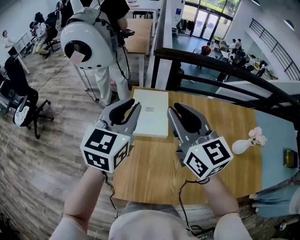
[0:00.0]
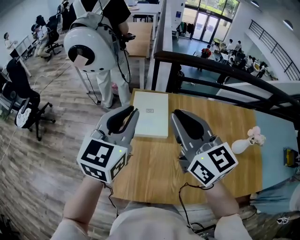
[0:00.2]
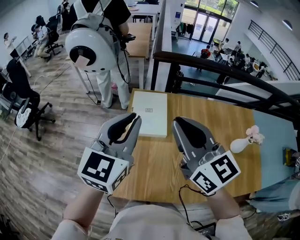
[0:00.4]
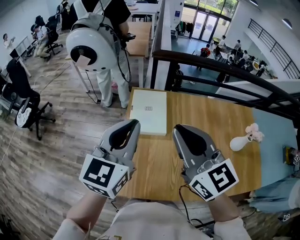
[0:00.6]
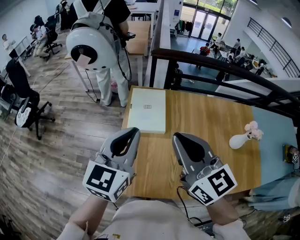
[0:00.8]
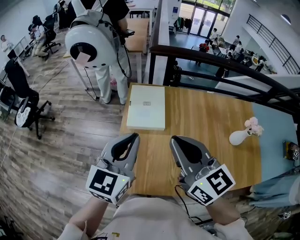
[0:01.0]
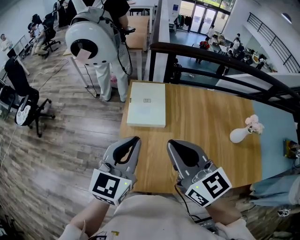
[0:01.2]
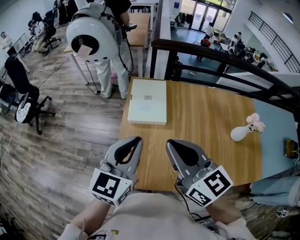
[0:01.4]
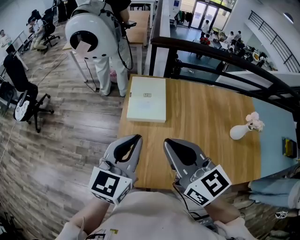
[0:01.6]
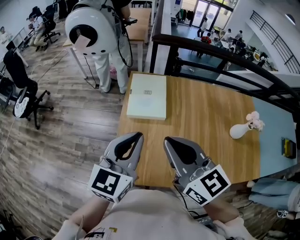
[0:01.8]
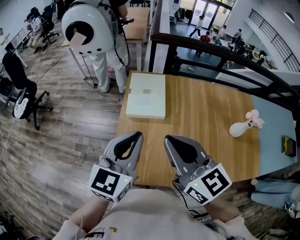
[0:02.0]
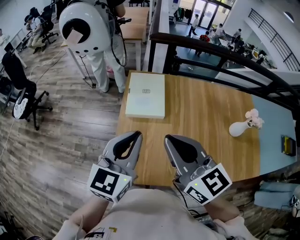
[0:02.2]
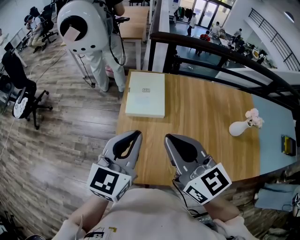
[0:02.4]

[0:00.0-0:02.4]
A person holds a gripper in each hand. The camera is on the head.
0:00.0 to 0:01.2: Both grippers travel together backward, some 15 cm.
0:01.2 to 0:02.4: There are only small adjustments of the grippers.

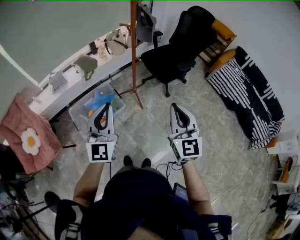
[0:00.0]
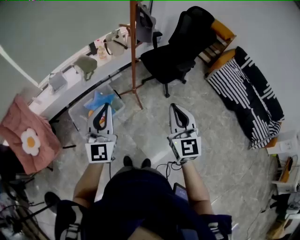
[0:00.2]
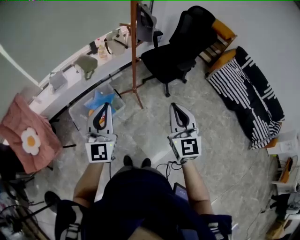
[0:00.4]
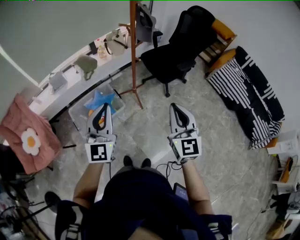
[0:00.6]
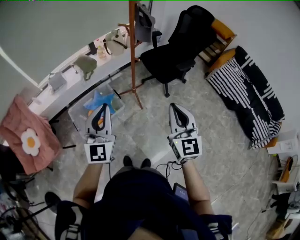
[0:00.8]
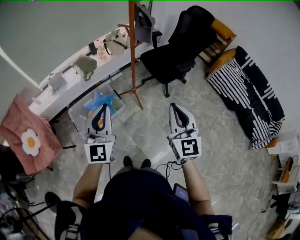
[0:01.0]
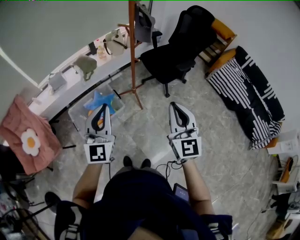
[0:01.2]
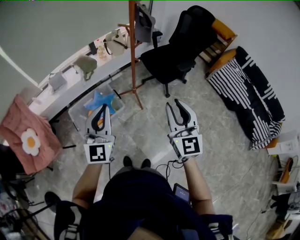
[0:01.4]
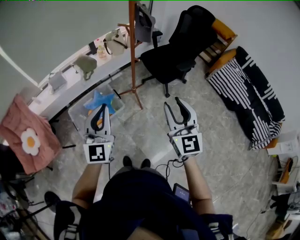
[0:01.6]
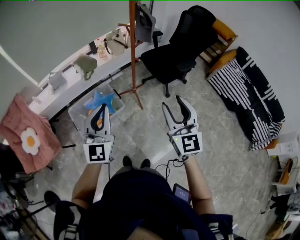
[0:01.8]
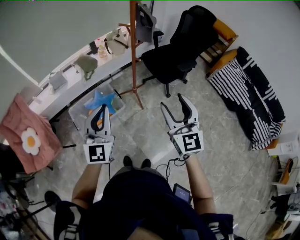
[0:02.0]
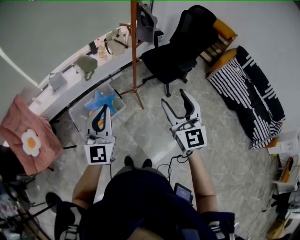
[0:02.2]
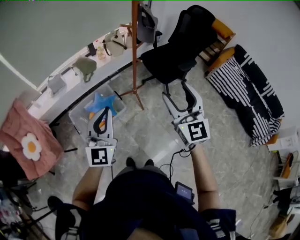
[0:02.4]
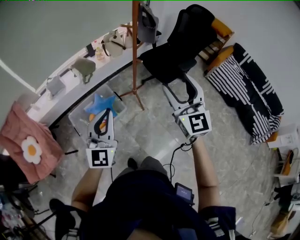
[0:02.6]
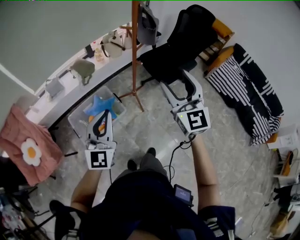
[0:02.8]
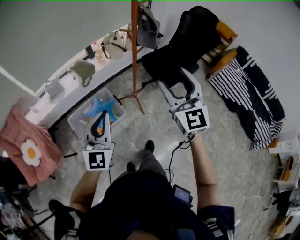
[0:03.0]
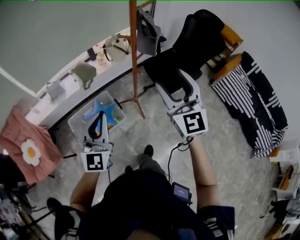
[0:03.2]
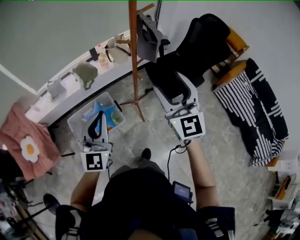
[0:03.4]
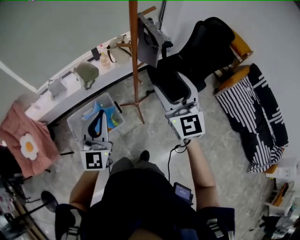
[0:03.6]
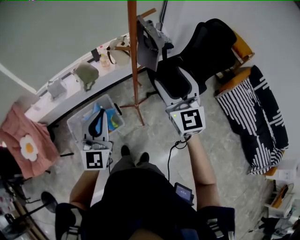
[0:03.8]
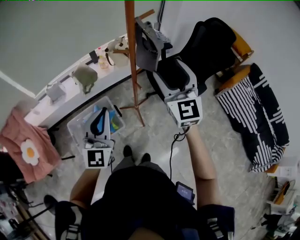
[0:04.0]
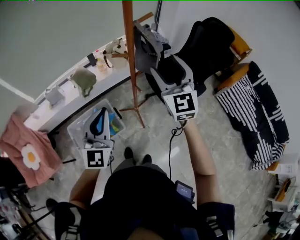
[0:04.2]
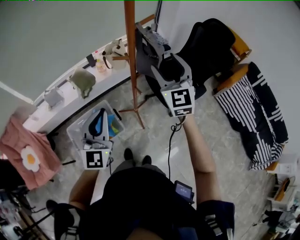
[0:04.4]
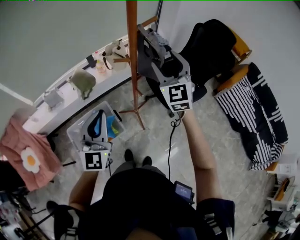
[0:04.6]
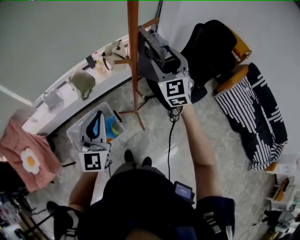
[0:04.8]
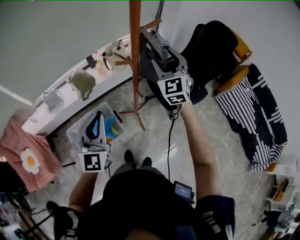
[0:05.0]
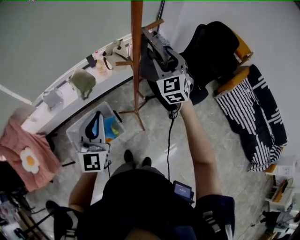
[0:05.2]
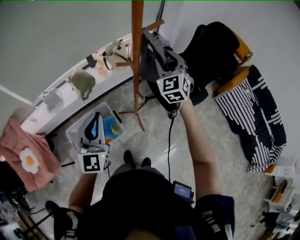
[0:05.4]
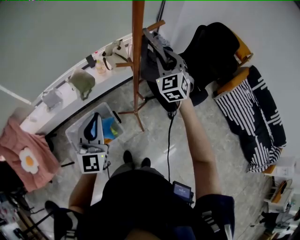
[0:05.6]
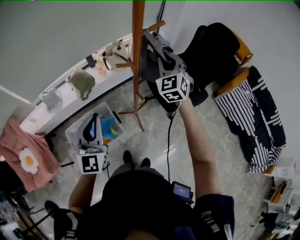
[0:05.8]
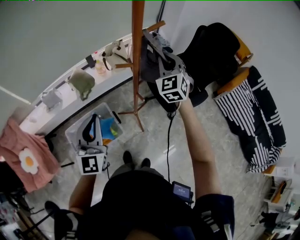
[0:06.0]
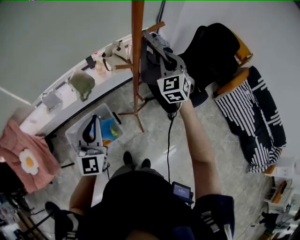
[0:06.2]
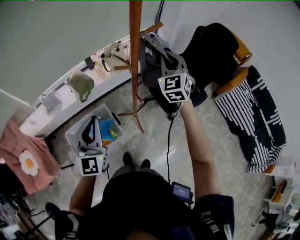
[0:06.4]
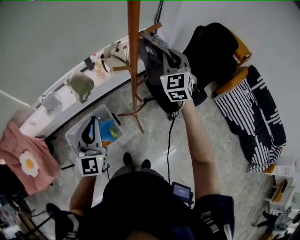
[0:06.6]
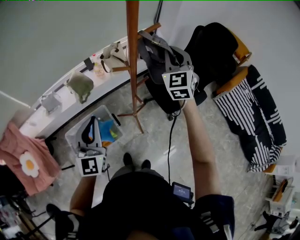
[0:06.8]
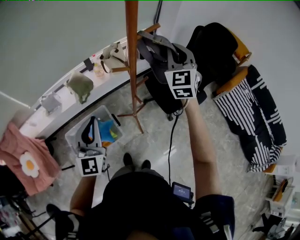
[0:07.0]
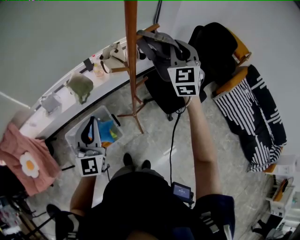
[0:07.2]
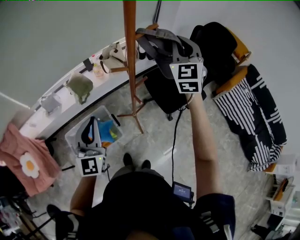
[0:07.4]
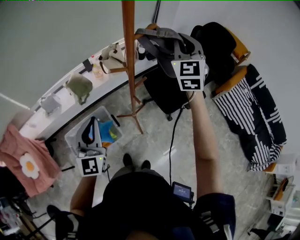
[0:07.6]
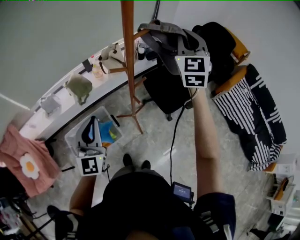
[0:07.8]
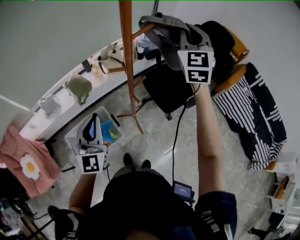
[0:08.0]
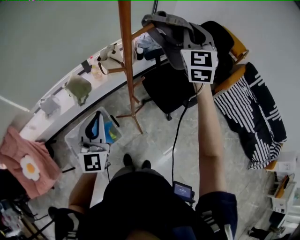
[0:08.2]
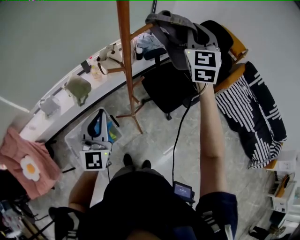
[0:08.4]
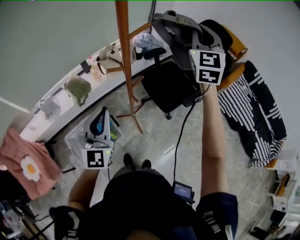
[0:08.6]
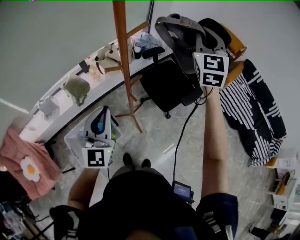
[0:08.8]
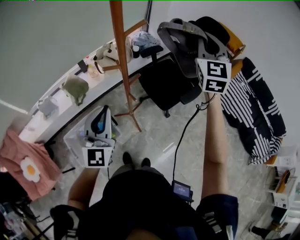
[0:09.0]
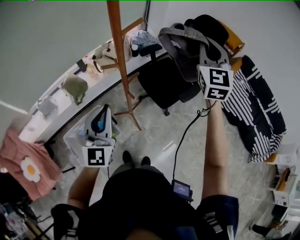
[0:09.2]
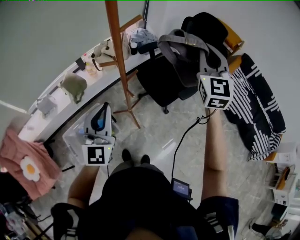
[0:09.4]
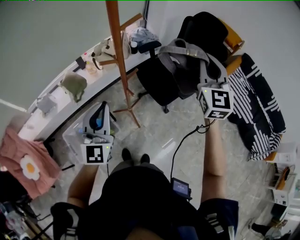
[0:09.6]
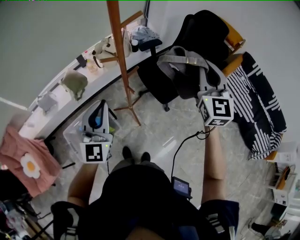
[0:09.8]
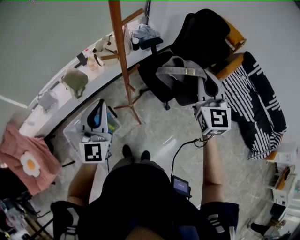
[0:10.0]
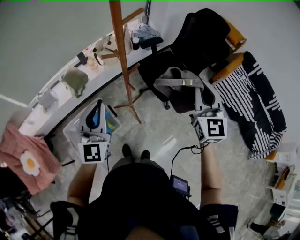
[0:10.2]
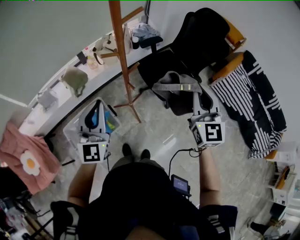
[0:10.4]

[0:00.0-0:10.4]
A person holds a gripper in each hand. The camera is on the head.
0:00.0 to 0:01.4: There are only small adjustments of the grippers.
0:01.4 to 0:03.0: The left gripper heads forward, covering some 10 cm. Meanwhile the right gripper travels forward by some 15 cm, and opens its fingers.
0:03.0 to 0:04.4: Both grippers travel together forward, approximately 25 cm.
0:04.4 to 0:06.0: The right gripper goes about 15 cm forward and downward, and closes up. Meanwhile the left gripper shifts approximately 5 cm to the left.
0:06.0 to 0:07.4: The right gripper is displaced upward and to the right by roughly 10 cm.
0:07.4 to 0:09.0: The left gripper is displaced to the right by some 10 cm. The right gripper travels to the right and upward by approximately 10 cm.
0:09.0 to 0:10.4: The right gripper is displaced backward and downward by roughly 20 cm.

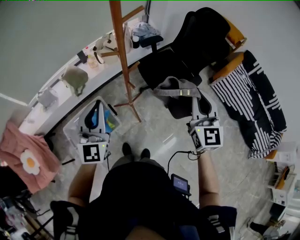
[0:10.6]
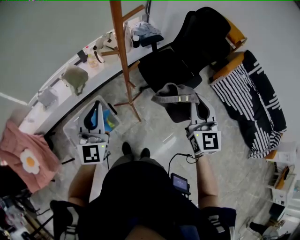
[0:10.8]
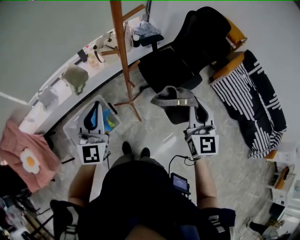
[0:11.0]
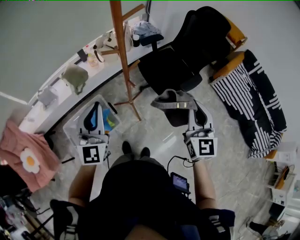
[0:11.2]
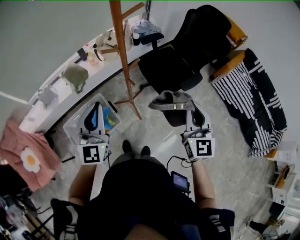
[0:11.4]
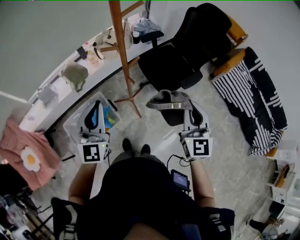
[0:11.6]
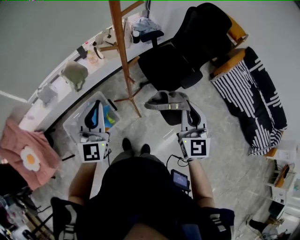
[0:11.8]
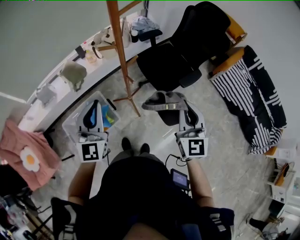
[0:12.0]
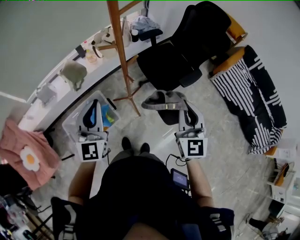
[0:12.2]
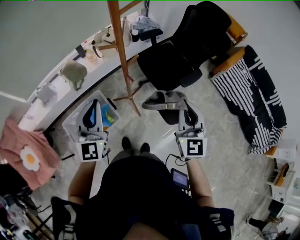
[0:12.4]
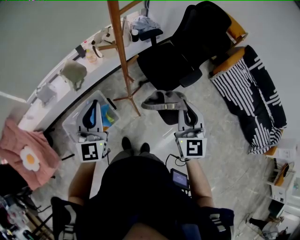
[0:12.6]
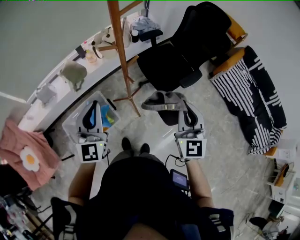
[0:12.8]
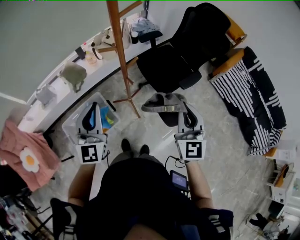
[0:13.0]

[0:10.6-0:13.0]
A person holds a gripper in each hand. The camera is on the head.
0:10.6 to 0:11.8: The right gripper is displaced downward by approximately 5 cm.
0:11.8 to 0:13.0: Neither gripper changes place.

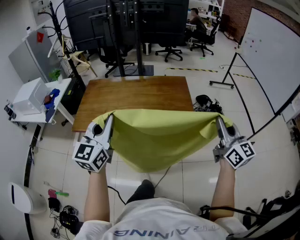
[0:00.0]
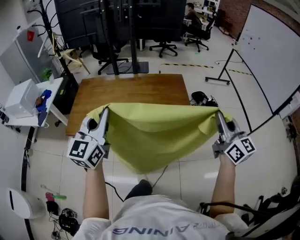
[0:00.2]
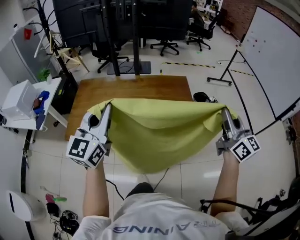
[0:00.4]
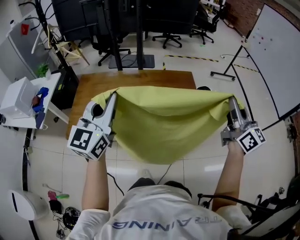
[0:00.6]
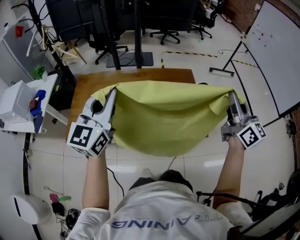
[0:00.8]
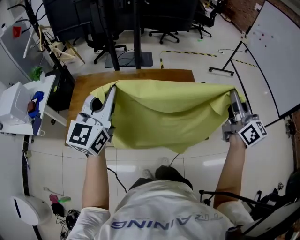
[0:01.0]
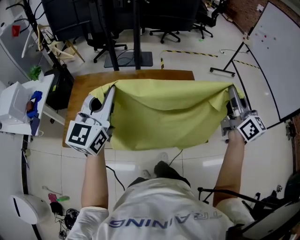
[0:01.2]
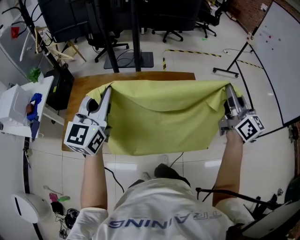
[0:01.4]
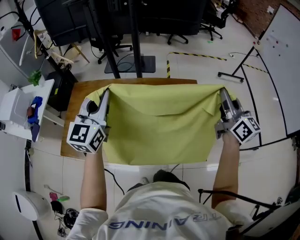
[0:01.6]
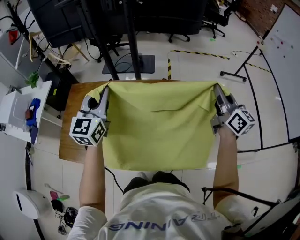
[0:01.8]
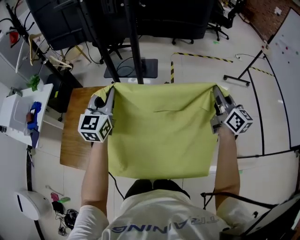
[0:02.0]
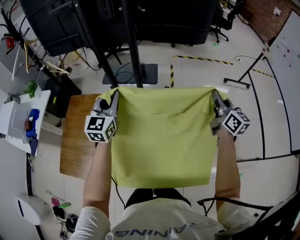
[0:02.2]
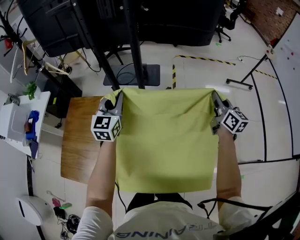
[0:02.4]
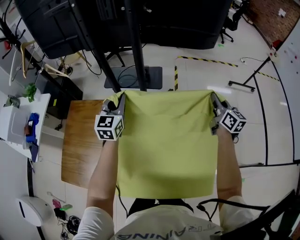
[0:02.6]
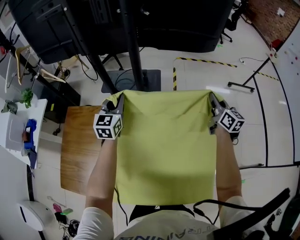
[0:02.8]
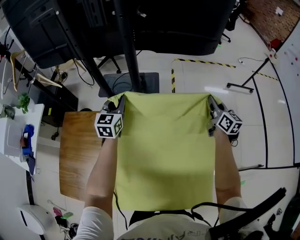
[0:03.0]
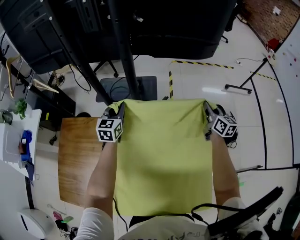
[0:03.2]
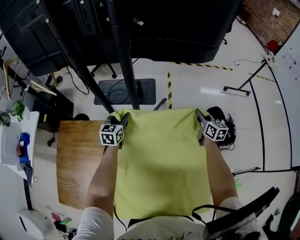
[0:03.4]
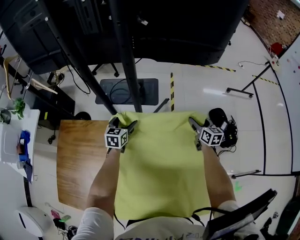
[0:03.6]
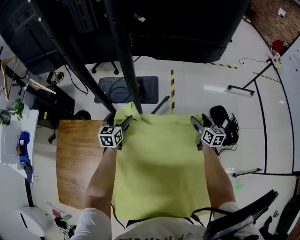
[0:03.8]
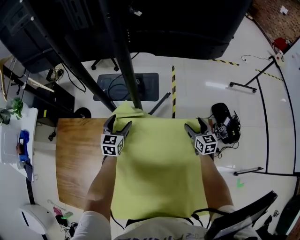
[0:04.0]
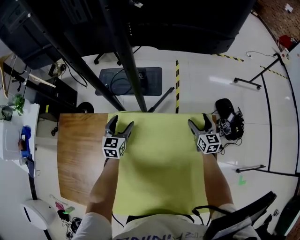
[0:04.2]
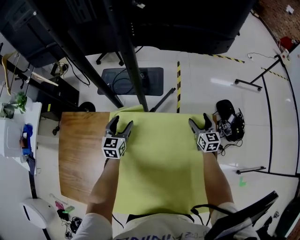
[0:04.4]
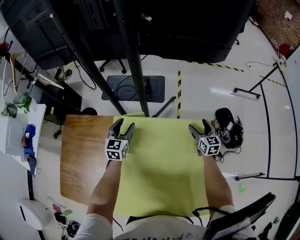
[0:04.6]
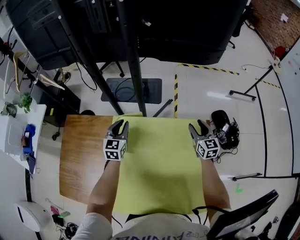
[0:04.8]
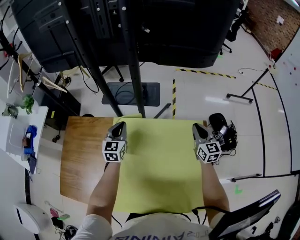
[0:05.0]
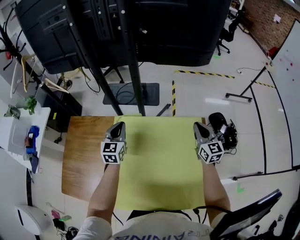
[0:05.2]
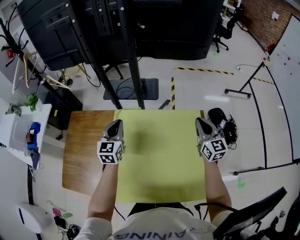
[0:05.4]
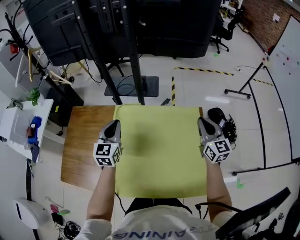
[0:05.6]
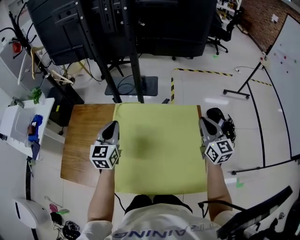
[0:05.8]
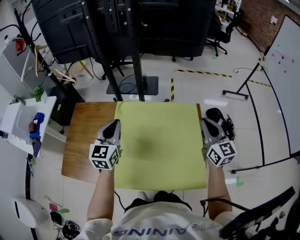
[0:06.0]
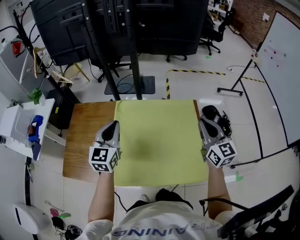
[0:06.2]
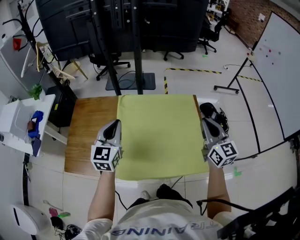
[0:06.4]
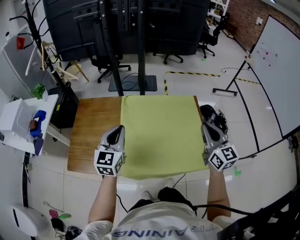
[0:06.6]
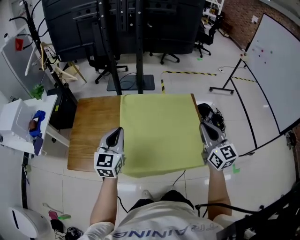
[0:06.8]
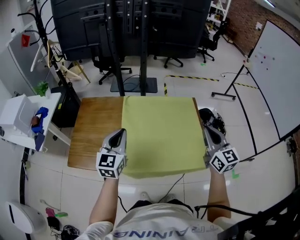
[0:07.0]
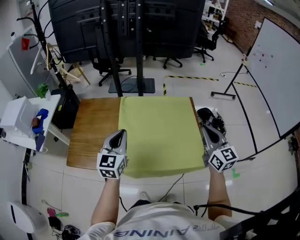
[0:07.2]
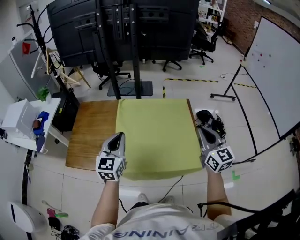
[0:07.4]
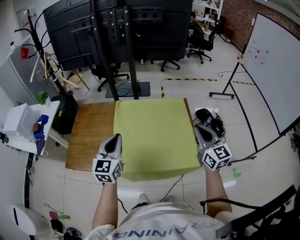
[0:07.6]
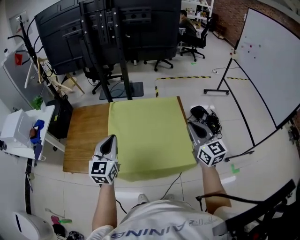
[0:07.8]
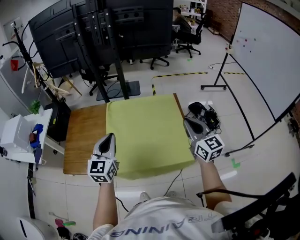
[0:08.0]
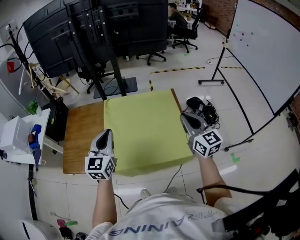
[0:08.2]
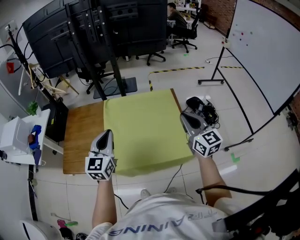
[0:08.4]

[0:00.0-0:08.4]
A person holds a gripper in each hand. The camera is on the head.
0:00.0 to 0:01.4: The grippers both shift forward by some 30 cm.
0:01.4 to 0:02.8: Both grippers travel together forward and downward, roughly 40 cm.
0:02.8 to 0:04.2: Both grippers travel together downward, some 20 cm. The left gripper opens up; the right gripper swivels approximately 20 degrees, and opens up.
0:04.2 to 0:05.6: Both grippers travel together upward and backward, some 30 cm. The right gripper closes. Meanwhile the left gripper closes.
0:05.6 to 0:07.0: The grippers both shift backward by some 25 cm.
0:07.0 to 0:08.4: The left gripper shifts approximately 5 cm to the right.
